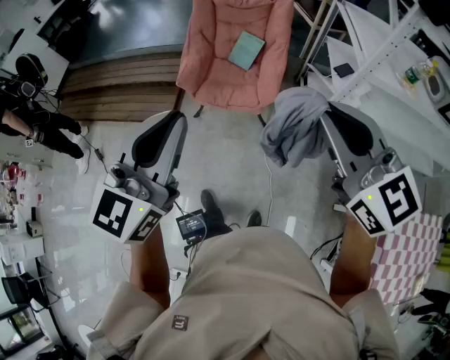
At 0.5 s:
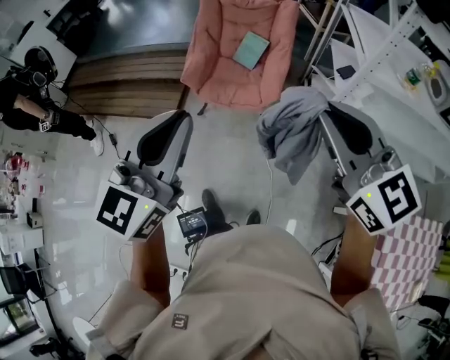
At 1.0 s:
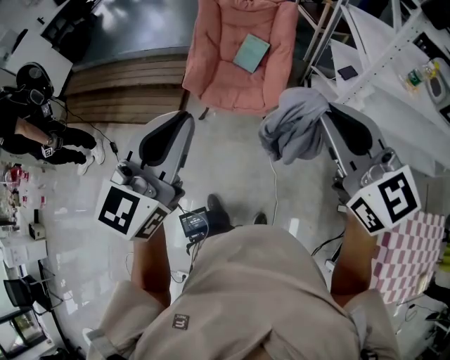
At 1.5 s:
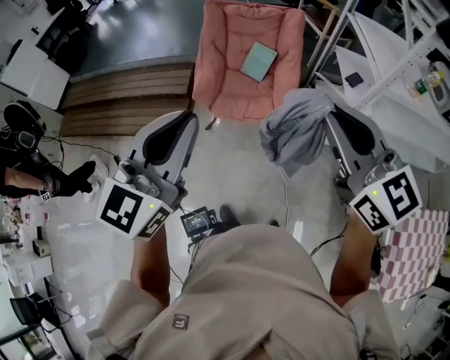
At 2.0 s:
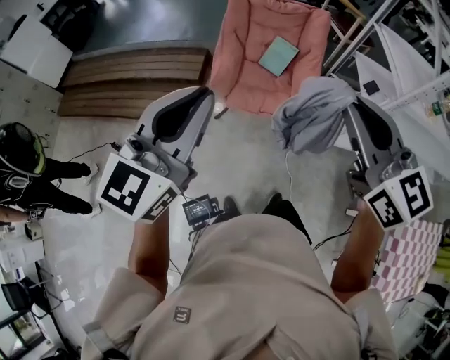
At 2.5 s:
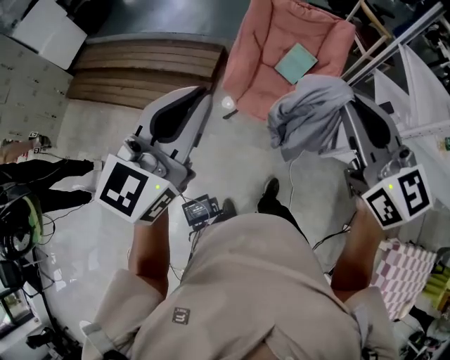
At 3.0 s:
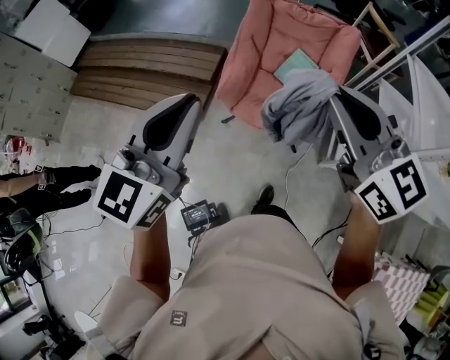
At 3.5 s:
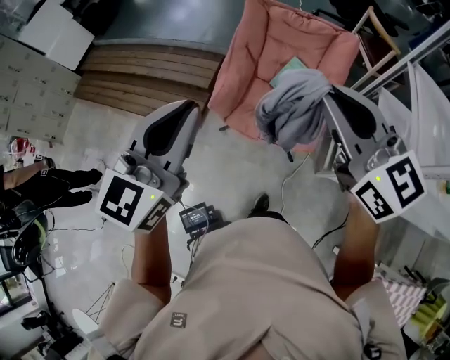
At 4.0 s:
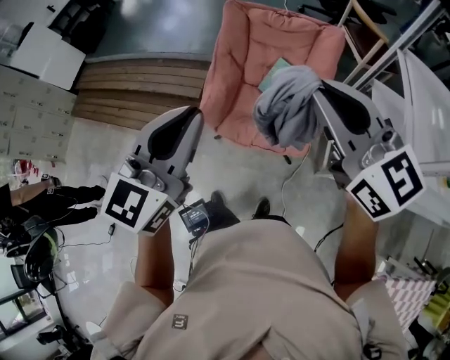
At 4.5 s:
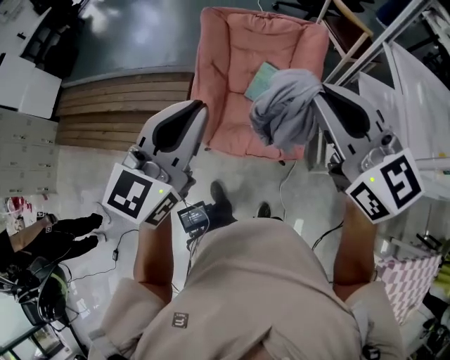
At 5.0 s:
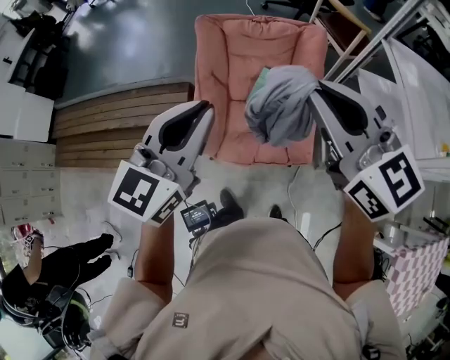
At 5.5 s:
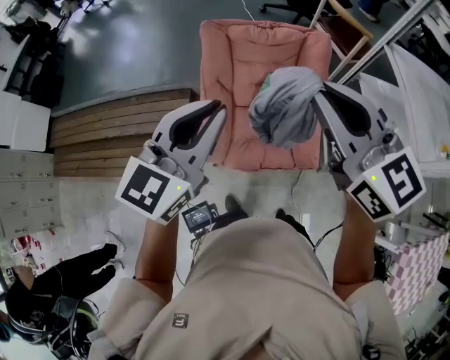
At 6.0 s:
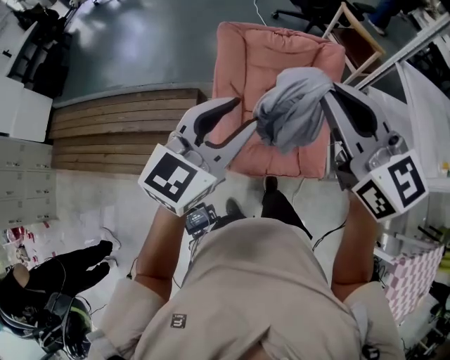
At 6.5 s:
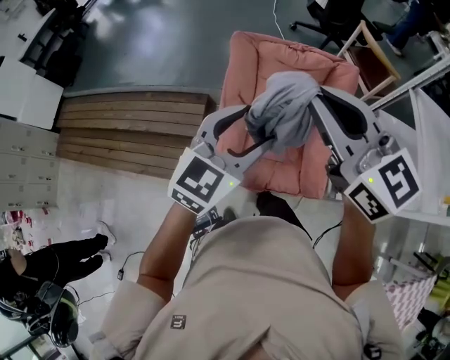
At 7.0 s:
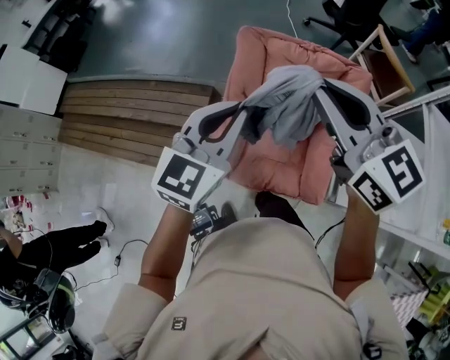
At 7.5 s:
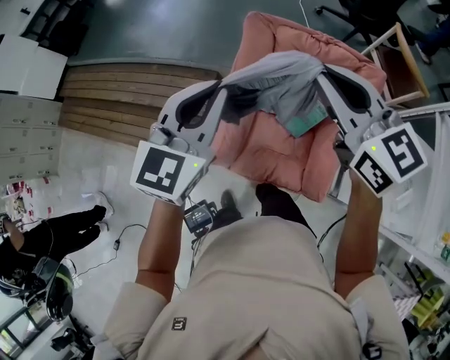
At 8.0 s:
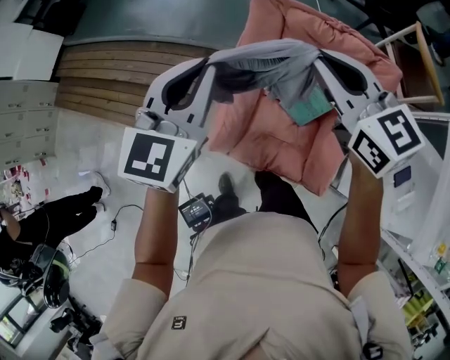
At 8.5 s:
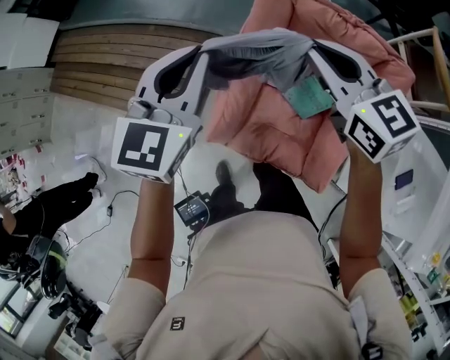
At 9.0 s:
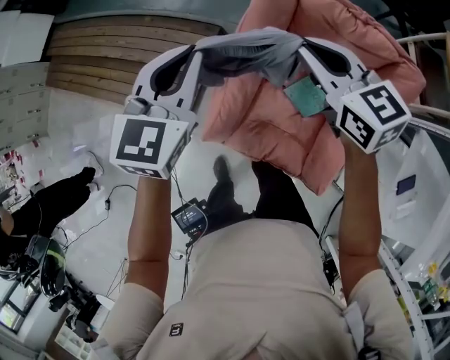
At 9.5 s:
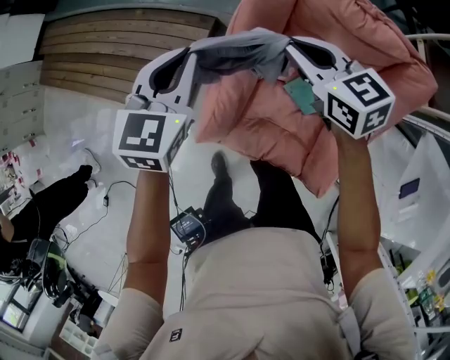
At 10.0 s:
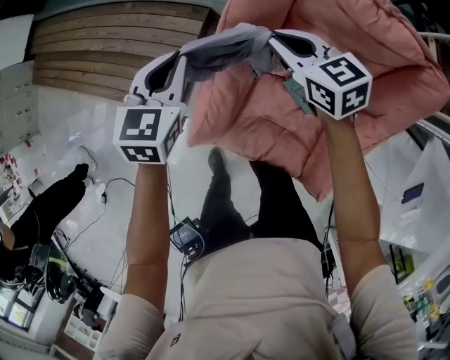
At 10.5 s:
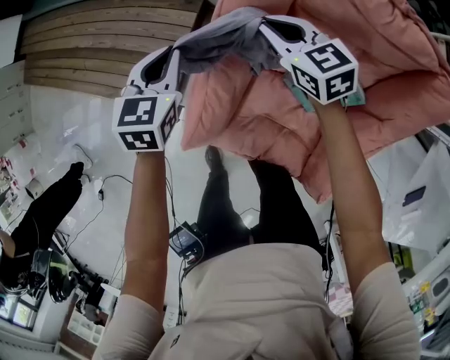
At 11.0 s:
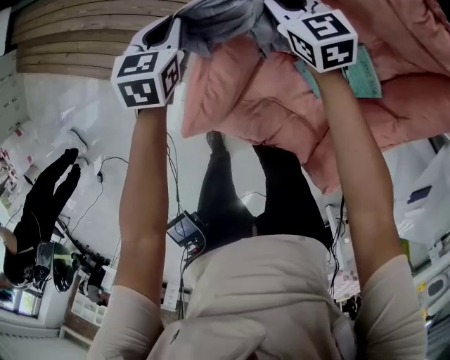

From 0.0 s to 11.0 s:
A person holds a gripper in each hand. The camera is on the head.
From 0.0 s to 2.0 s: The grippers both shift to the left and forward by approximately 20 cm.
From 2.0 s to 3.5 s: The right gripper shifts roughly 25 cm forward. Meanwhile the left gripper travels forward and to the right by about 20 cm.
From 3.5 s to 5.5 s: Both grippers travel together forward, about 25 cm. The left gripper turns by approximately 30 degrees.
From 5.5 s to 7.5 s: The right gripper shifts approximately 20 cm forward and to the left; the left gripper shifts about 20 cm forward, to the left and downward, rotates about 20 degrees, and opens, then closes once more.
From 7.5 s to 9.0 s: The right gripper moves downward and forward, approximately 30 cm; the left gripper goes roughly 25 cm forward and downward.
From 9.0 s to 11.0 s: Both grippers travel together downward and forward, some 40 cm. The left gripper turns by some 30 degrees.

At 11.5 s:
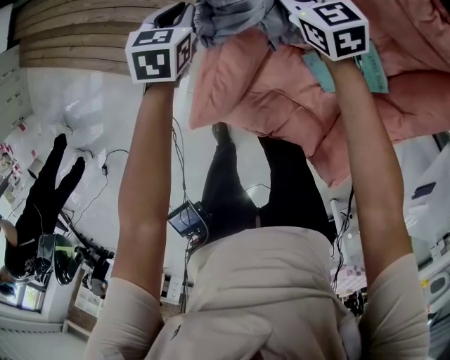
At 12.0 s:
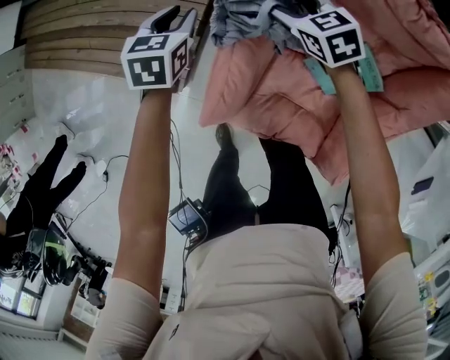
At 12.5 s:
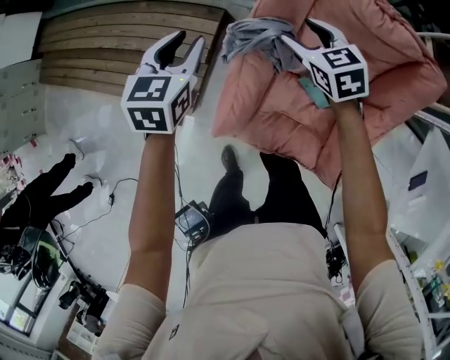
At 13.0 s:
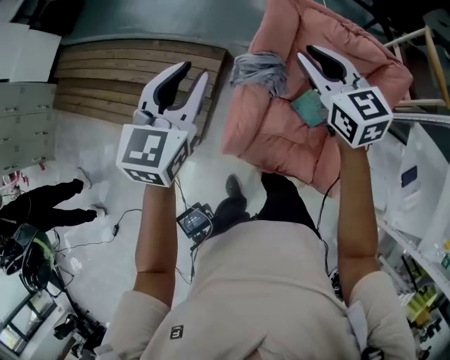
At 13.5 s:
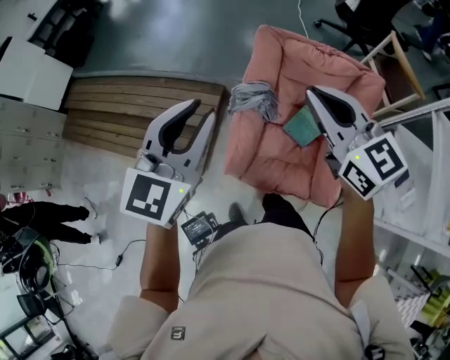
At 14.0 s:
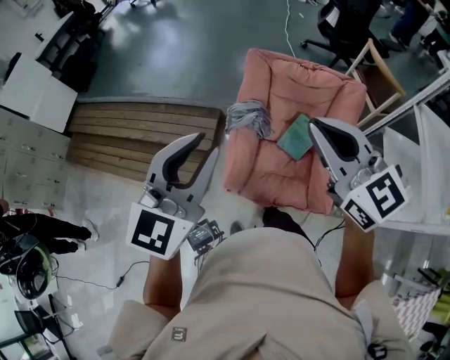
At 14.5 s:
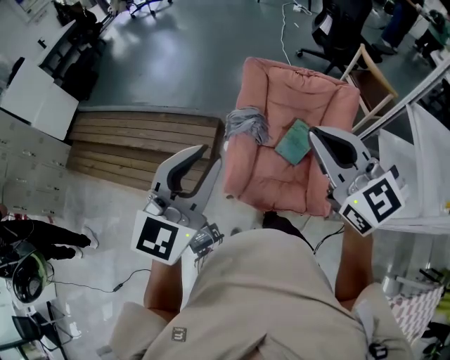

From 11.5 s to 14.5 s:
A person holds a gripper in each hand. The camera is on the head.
From 11.5 s to 13.0 s: The left gripper is displaced upward and backward by about 40 cm, tilts its fingers approximately 30 degrees upward, and opens its fingers; the right gripper heads backward and upward, covering about 40 cm, turns by about 30 degrees, and opens, then closes again.
From 13.0 s to 14.5 s: The grippers both shift backward and upward by approximately 35 cm. The left gripper rotates about 20 degrees.

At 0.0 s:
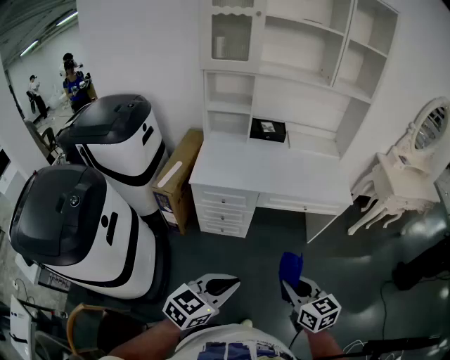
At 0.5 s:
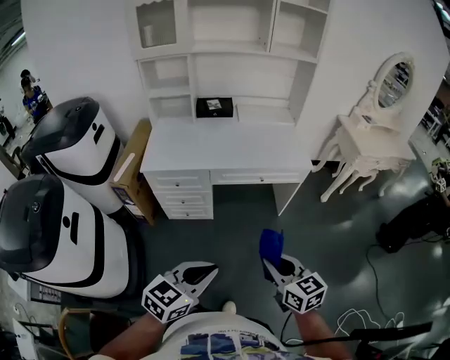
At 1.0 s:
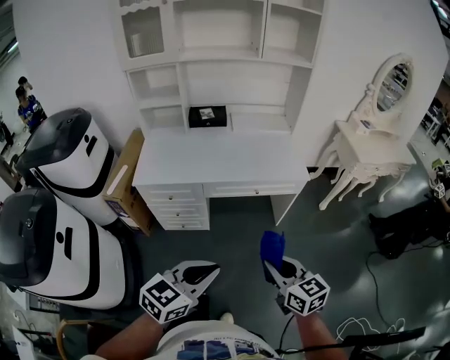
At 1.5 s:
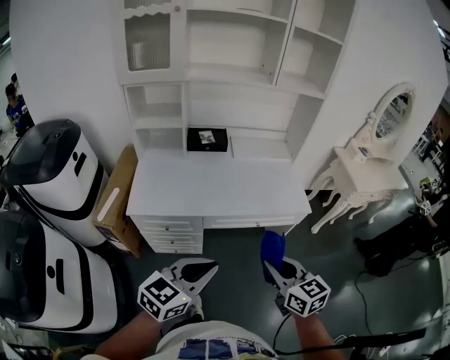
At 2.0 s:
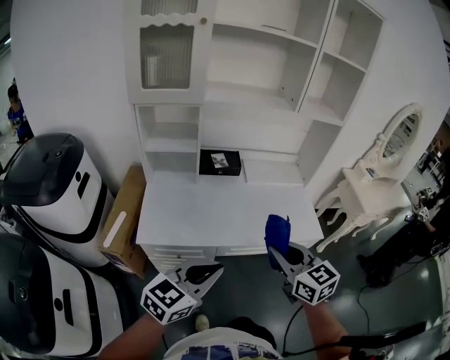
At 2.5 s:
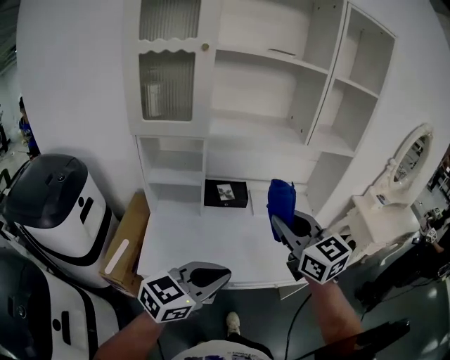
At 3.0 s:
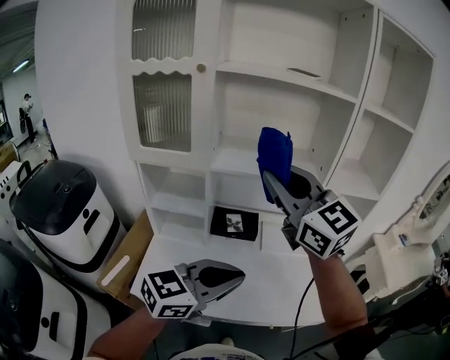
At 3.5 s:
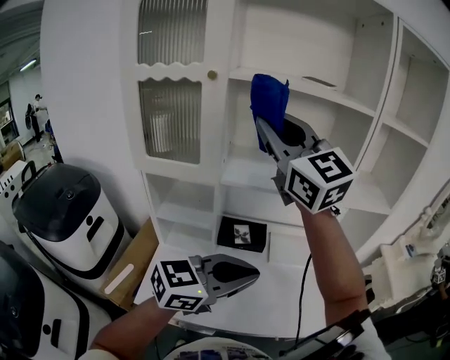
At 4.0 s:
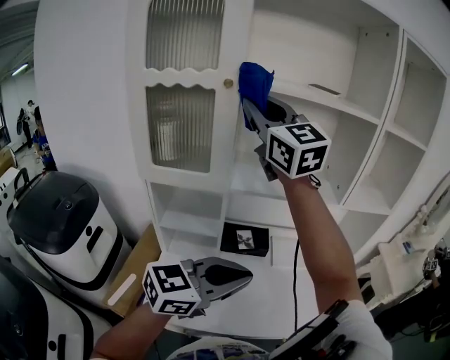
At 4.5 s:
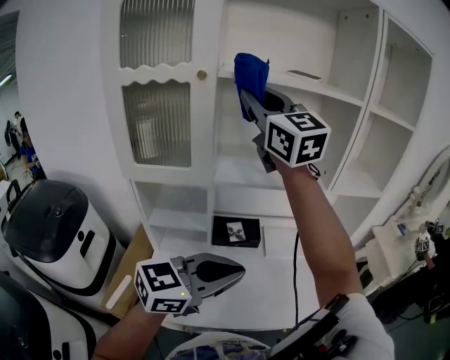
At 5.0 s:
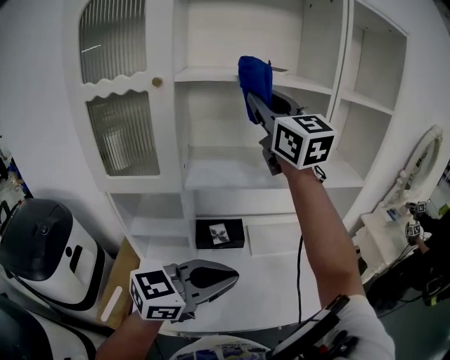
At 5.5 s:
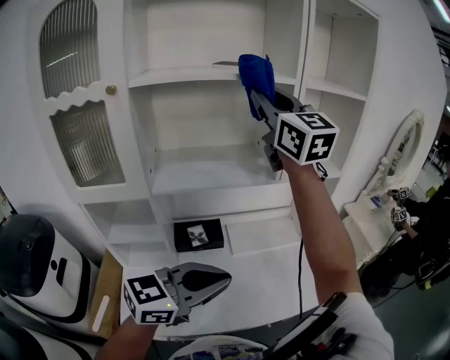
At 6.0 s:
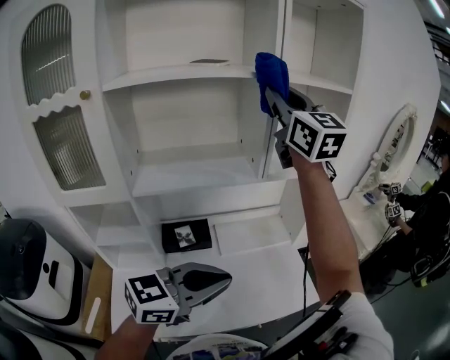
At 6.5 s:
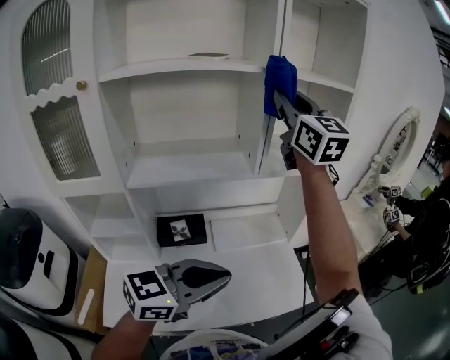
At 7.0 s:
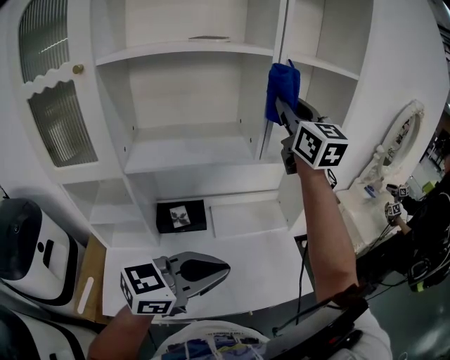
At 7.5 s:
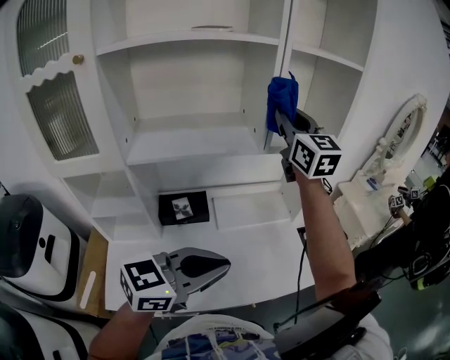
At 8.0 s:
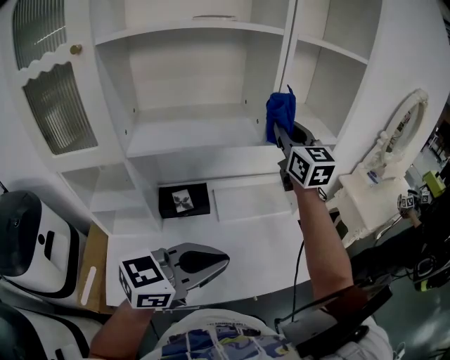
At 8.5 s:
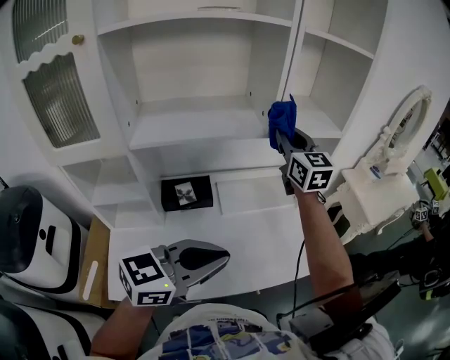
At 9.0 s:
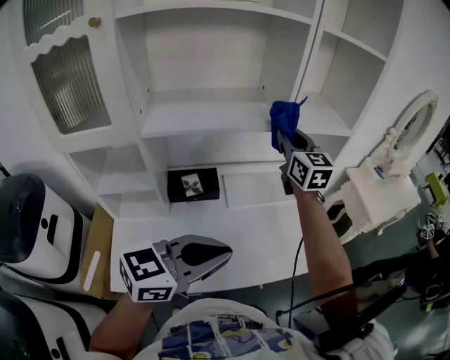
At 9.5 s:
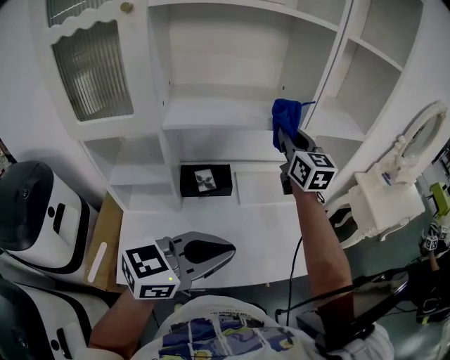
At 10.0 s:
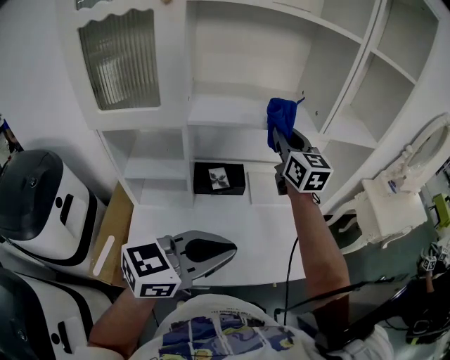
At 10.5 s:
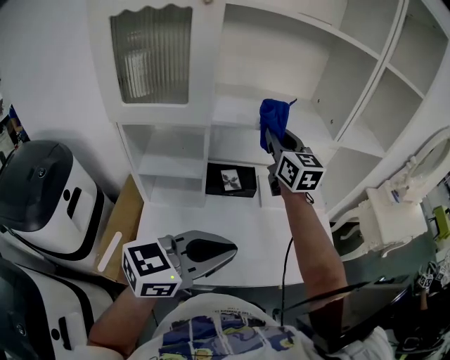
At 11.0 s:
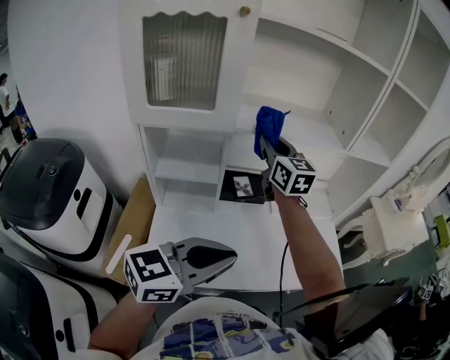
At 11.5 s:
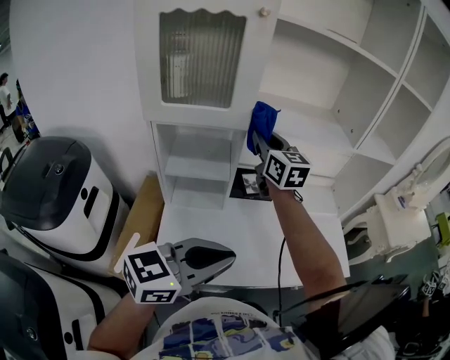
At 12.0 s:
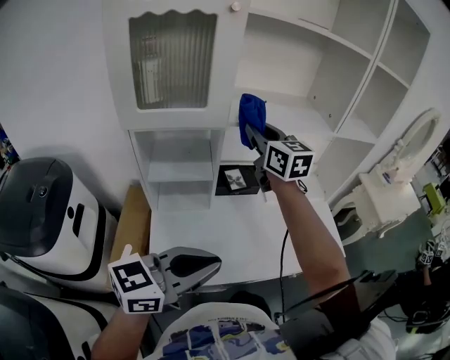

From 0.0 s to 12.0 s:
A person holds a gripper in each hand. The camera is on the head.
From 0.0 s to 2.0 s: Both grippers travel together forward, roughly 35 cm.
From 2.0 s to 4.0 s: The right gripper is displaced forward, upward and to the left by roughly 60 cm, and angles its fingers upward, by roughly 30 degrees, while the left gripper shifts roughly 30 cm forward and upward.
From 4.0 s to 6.0 s: The right gripper shifts roughly 35 cm to the right and forward, and rotates roughly 20 degrees; the left gripper goes some 15 cm to the right.
From 6.0 s to 8.0 s: The right gripper goes roughly 20 cm downward.
From 8.0 s to 10.0 s: The right gripper travels to the left, backward and downward by about 20 cm, while the left gripper moves to the left and backward, some 10 cm.
From 10.0 s to 12.0 s: The grippers both shift to the left and backward by approximately 20 cm.
